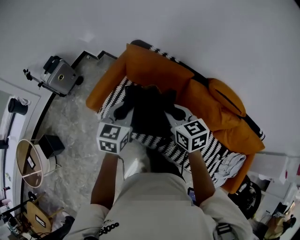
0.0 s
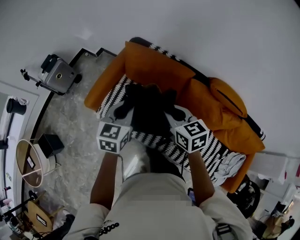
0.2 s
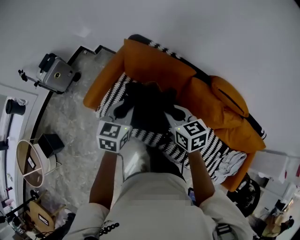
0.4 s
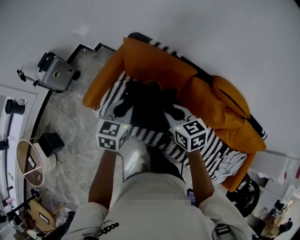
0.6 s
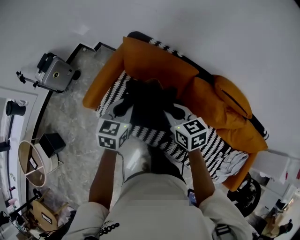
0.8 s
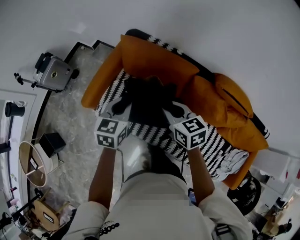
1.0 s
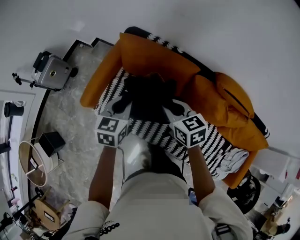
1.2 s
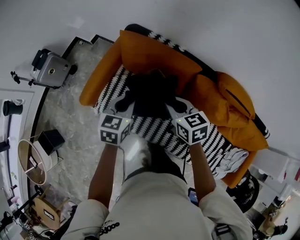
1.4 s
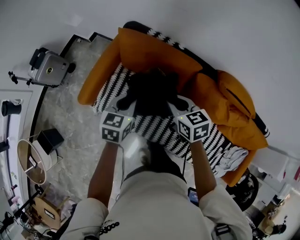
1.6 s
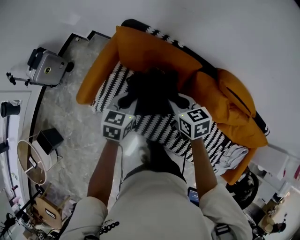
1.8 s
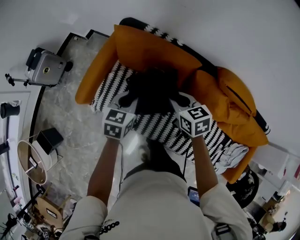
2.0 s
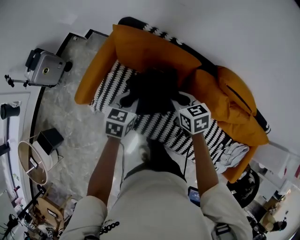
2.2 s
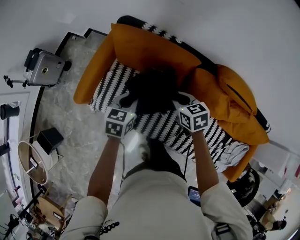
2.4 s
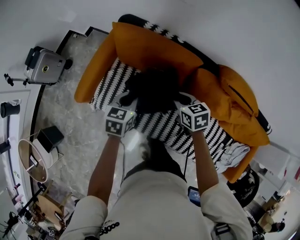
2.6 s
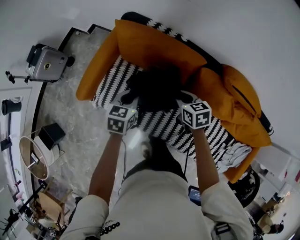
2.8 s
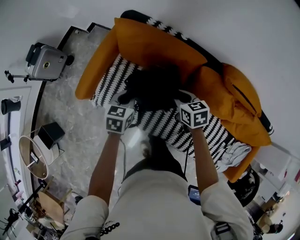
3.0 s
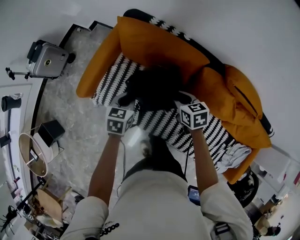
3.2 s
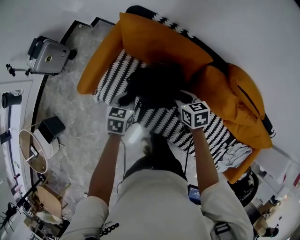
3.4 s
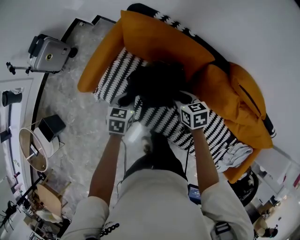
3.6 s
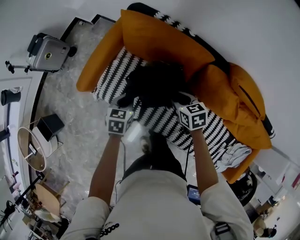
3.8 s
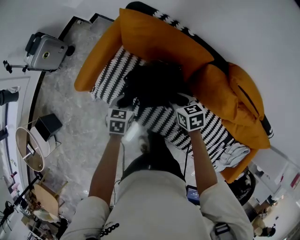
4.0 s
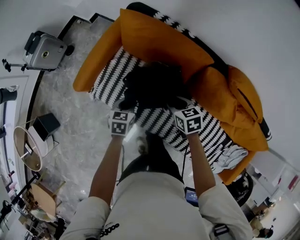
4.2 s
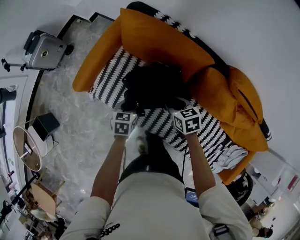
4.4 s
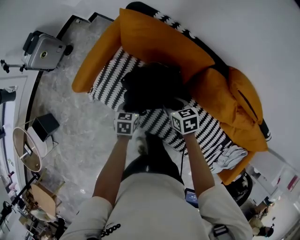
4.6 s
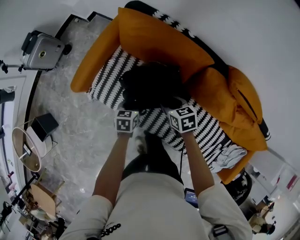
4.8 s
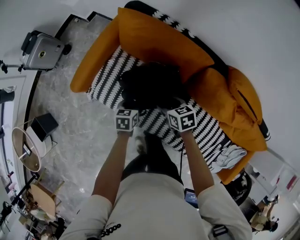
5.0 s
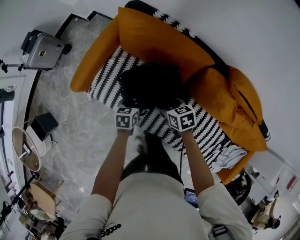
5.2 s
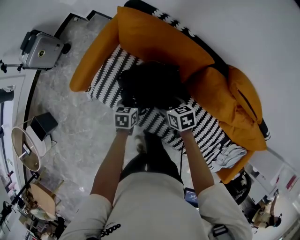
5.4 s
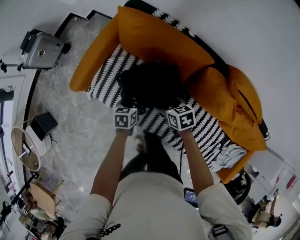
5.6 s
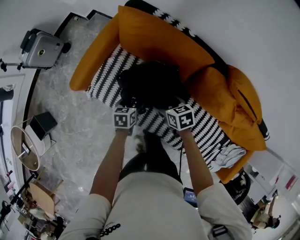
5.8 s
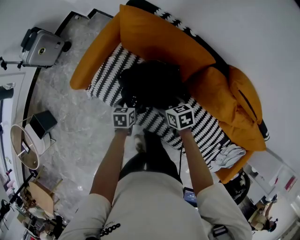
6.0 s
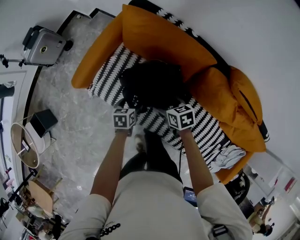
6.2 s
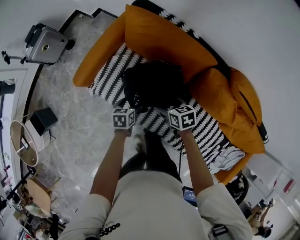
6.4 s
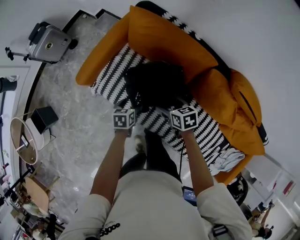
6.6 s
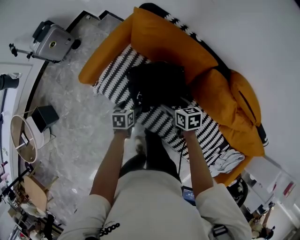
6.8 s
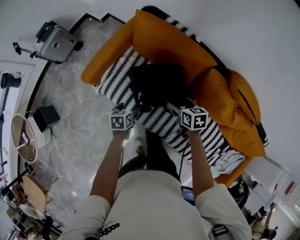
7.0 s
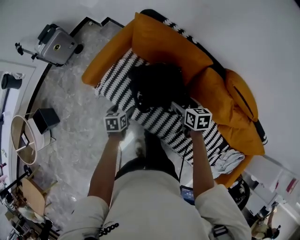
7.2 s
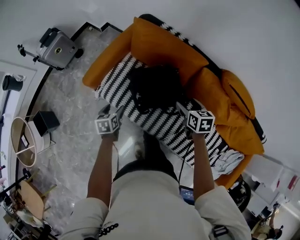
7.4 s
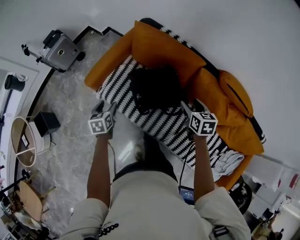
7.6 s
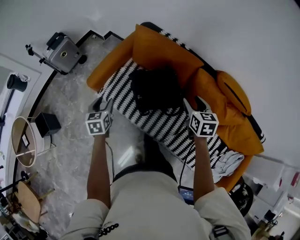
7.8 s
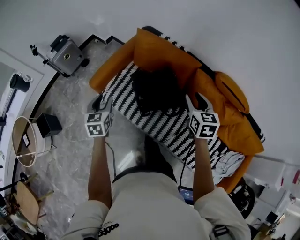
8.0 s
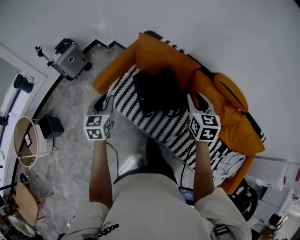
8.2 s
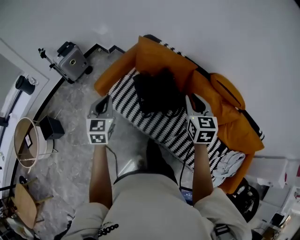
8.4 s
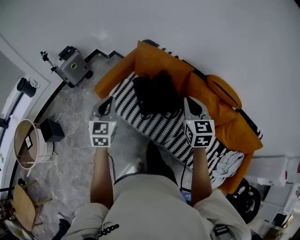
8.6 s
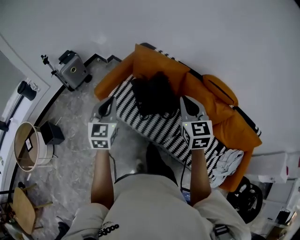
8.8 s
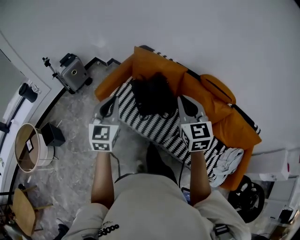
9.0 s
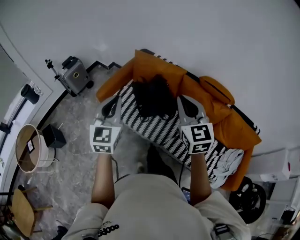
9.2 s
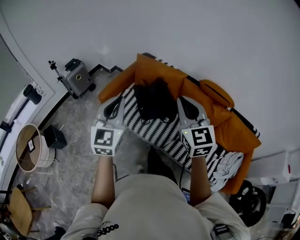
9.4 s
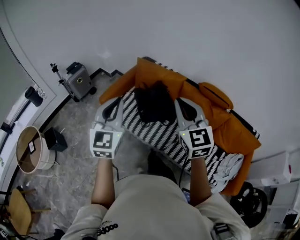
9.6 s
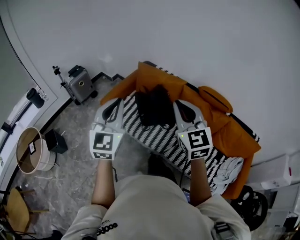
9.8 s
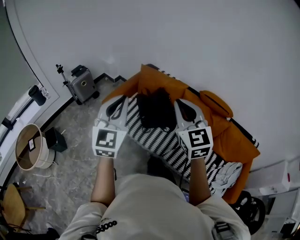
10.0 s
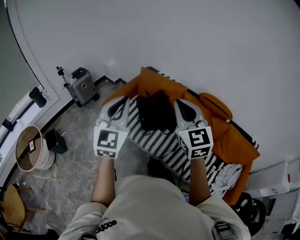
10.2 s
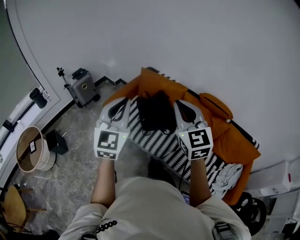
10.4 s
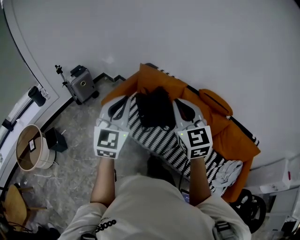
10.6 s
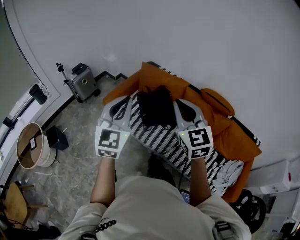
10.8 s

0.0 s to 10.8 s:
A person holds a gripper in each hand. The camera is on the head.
0.0 to 1.6 s: Both grippers travel together downward and forward, roughly 15 cm.
1.6 to 3.0 s: The two grippers go some 10 cm downward.
3.0 to 4.6 s: The left gripper is displaced downward and backward by approximately 15 cm; the right gripper goes roughly 5 cm downward.
4.6 to 6.2 s: The right gripper opens its fingers. Meanwhile the left gripper opens up.
6.2 to 7.8 s: The left gripper is displaced upward and to the left by approximately 25 cm, changes its angle by about 30 degrees, and closes. The right gripper moves upward and to the right, roughly 20 cm, swivels about 30 degrees, and closes.
7.8 to 9.2 s: The two grippers go roughly 35 cm upward and backward. The right gripper rotates about 40 degrees, and closes its fingers. The left gripper tilts its fingers some 40 degrees upward, and closes up.
9.2 to 10.8 s: The right gripper moves about 5 cm, while the left gripper shifts about 10 cm upward and backward.

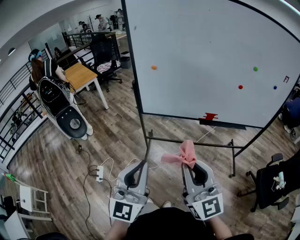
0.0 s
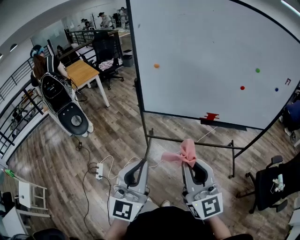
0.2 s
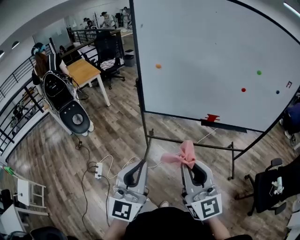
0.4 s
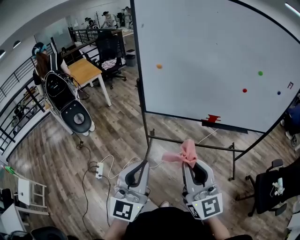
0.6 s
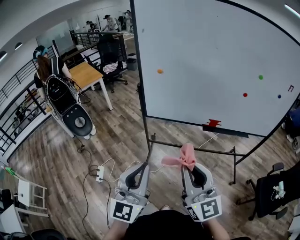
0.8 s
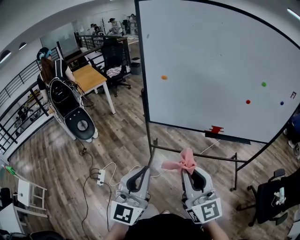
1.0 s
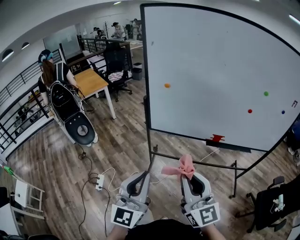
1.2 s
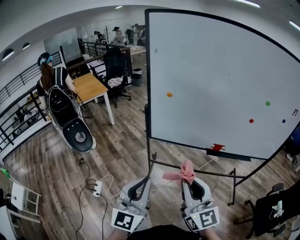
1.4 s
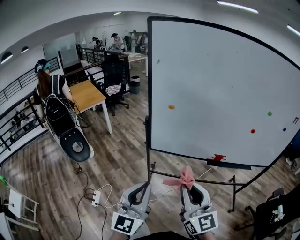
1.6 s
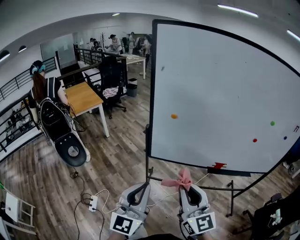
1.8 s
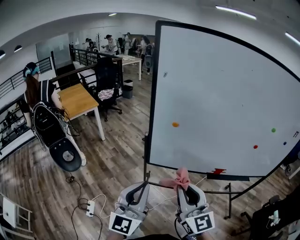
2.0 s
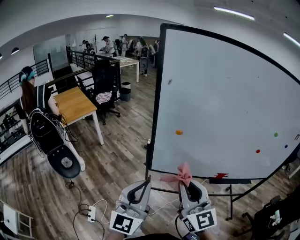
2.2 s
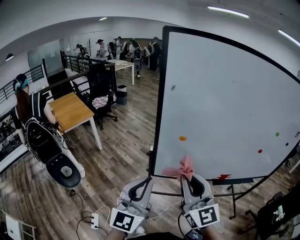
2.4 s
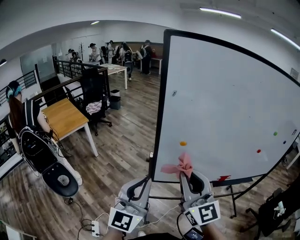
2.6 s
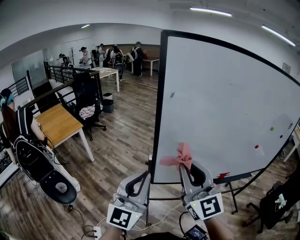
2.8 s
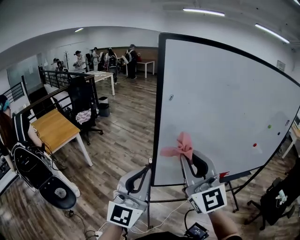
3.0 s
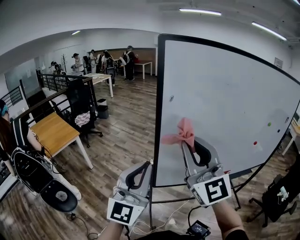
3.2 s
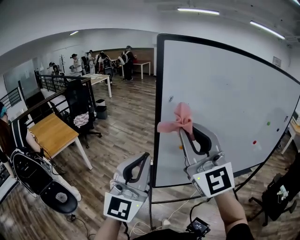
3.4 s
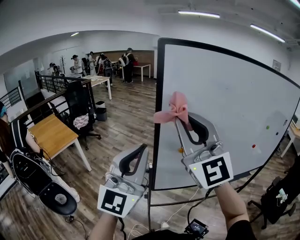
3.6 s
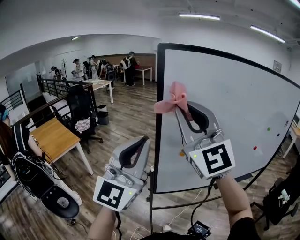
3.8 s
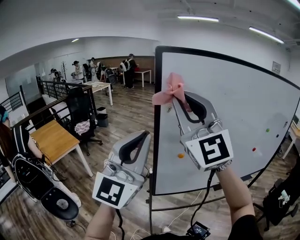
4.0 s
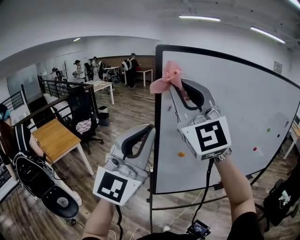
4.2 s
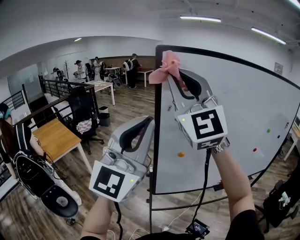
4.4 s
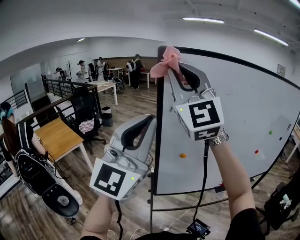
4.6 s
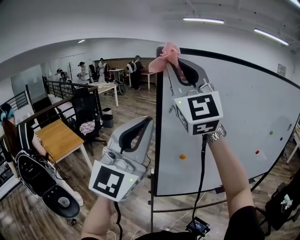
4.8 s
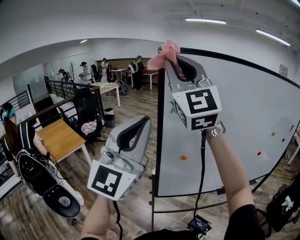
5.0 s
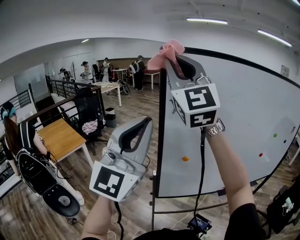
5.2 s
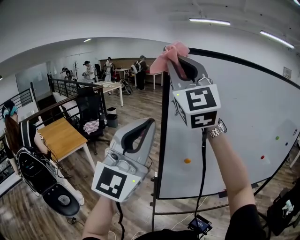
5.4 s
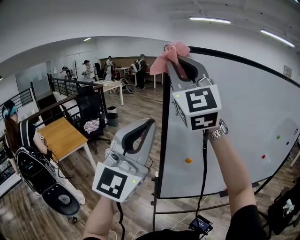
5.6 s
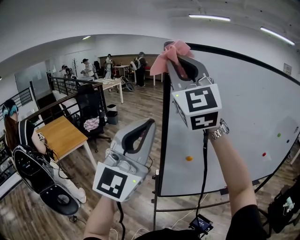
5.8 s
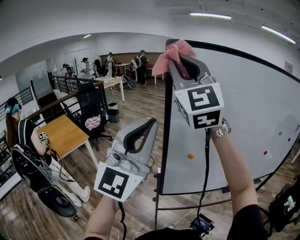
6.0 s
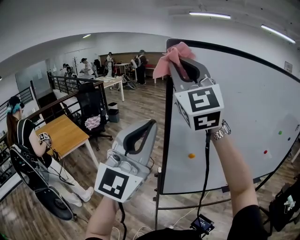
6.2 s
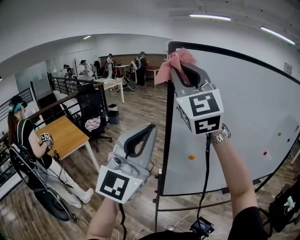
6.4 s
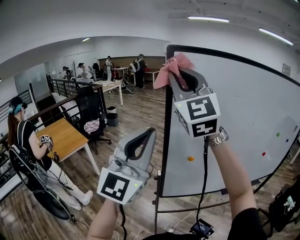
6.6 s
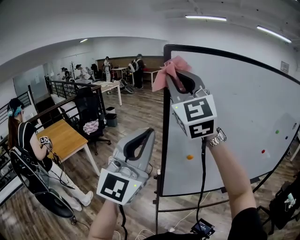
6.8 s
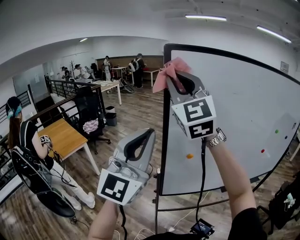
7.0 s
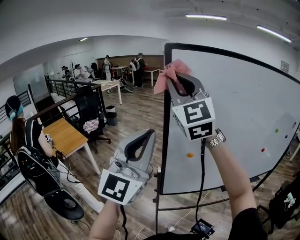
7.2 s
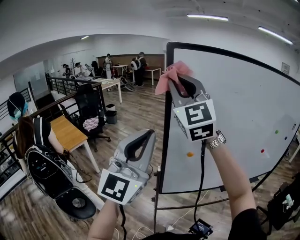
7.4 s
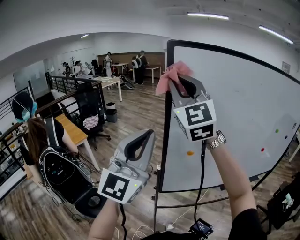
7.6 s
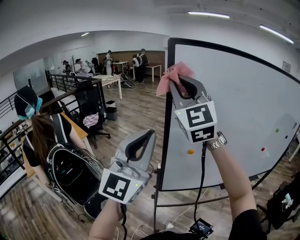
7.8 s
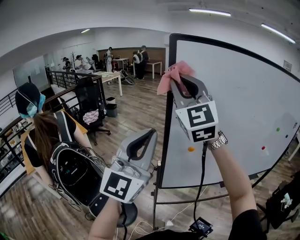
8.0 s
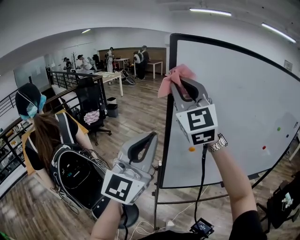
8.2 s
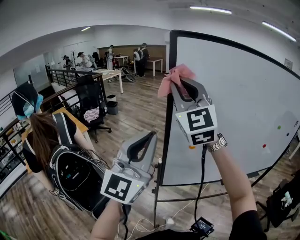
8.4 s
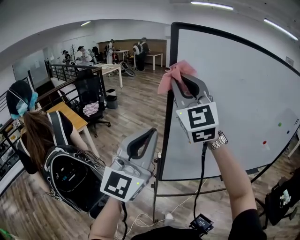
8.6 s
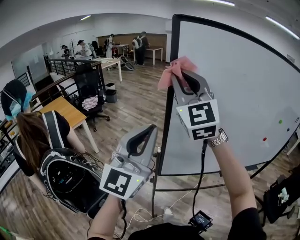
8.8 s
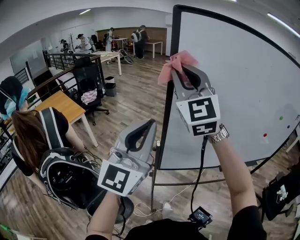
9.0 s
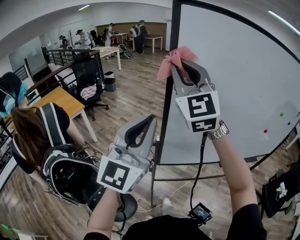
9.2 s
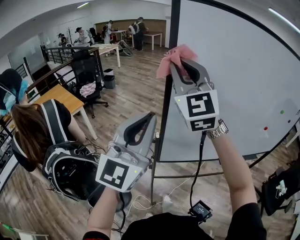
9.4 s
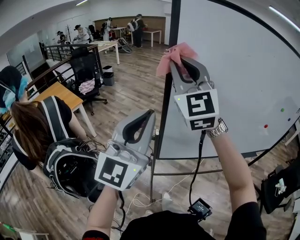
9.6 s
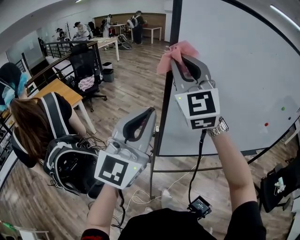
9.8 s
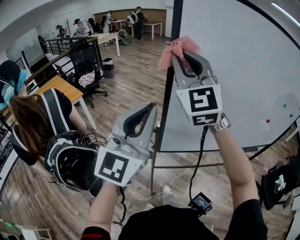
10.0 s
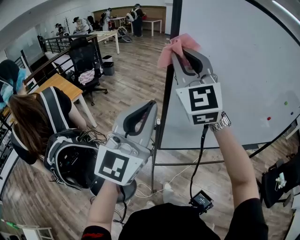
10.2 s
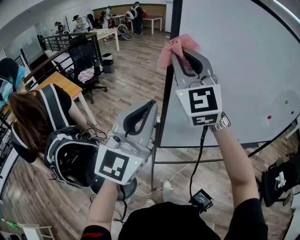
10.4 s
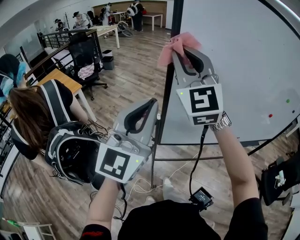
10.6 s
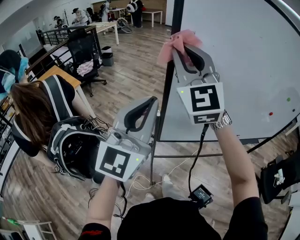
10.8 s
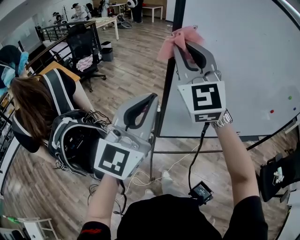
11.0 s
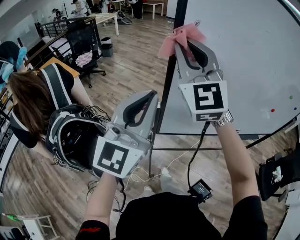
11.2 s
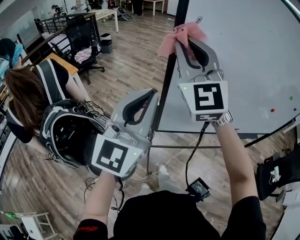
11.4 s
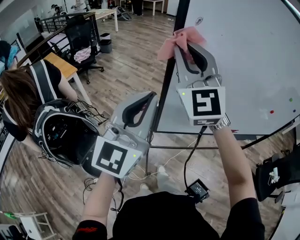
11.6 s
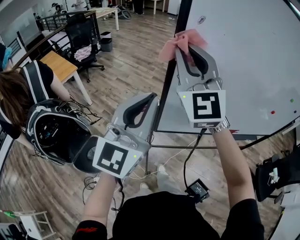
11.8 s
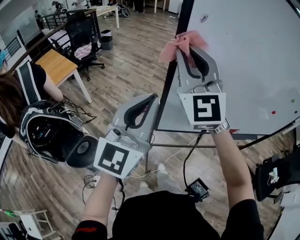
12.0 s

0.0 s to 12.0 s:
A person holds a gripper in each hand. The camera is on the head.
0.0 to 1.6 s: Both grippers move forward, about 15 cm.
1.6 to 3.0 s: The right gripper moves forward, to the left and upward, approximately 35 cm, and swivels about 30 degrees. The left gripper travels forward and to the left by about 30 cm.
3.0 to 4.4 s: The two grippers go about 20 cm upward. The right gripper rotates approximately 20 degrees.
4.4 to 6.0 s: The right gripper goes roughly 5 cm forward.
6.0 to 7.6 s: The right gripper moves downward, approximately 5 cm.
7.6 to 9.0 s: The two grippers go some 5 cm downward.
9.0 to 10.4 s: The right gripper goes approximately 5 cm downward.
10.4 to 12.0 s: Both grippers travel together downward, roughly 5 cm.

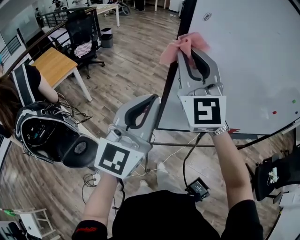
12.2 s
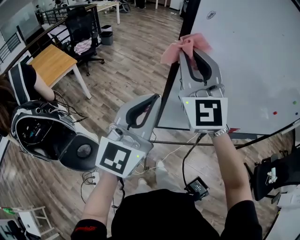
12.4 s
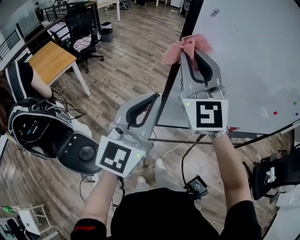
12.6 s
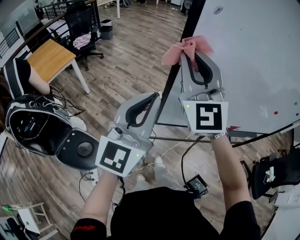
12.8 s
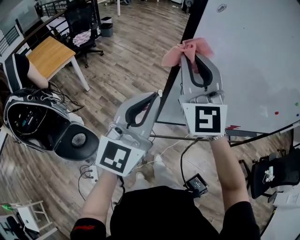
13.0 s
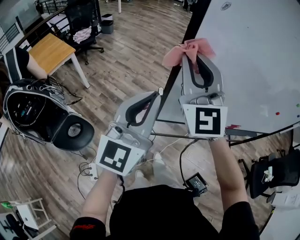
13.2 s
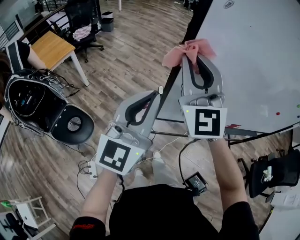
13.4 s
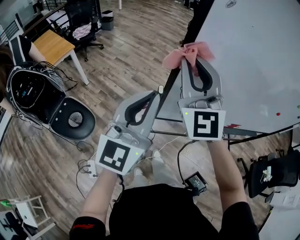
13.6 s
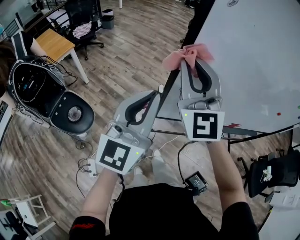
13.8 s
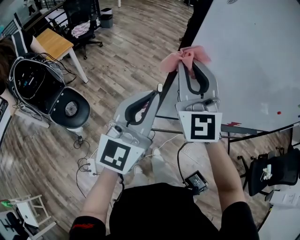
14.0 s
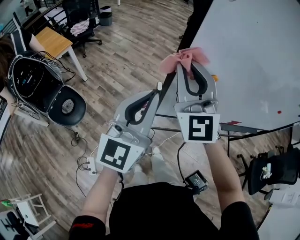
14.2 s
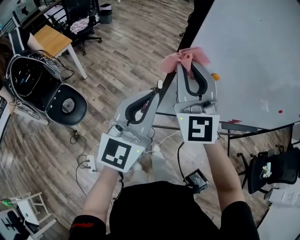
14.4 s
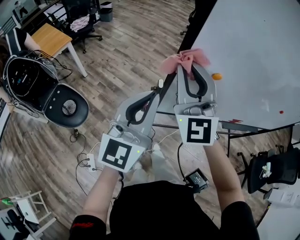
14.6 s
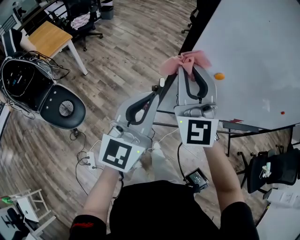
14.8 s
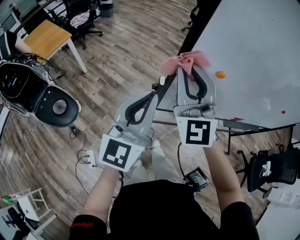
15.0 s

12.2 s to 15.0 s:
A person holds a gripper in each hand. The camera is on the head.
12.2 to 13.6 s: The left gripper moves approximately 5 cm. Meanwhile the right gripper shifts some 5 cm downward.
13.6 to 15.0 s: Both grippers move downward, approximately 5 cm.
